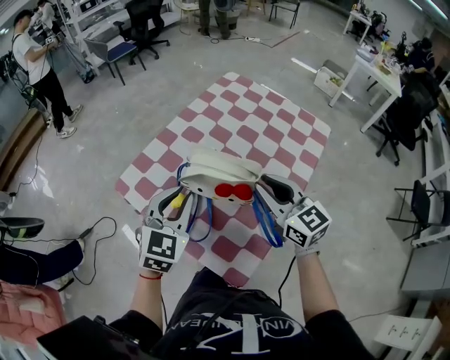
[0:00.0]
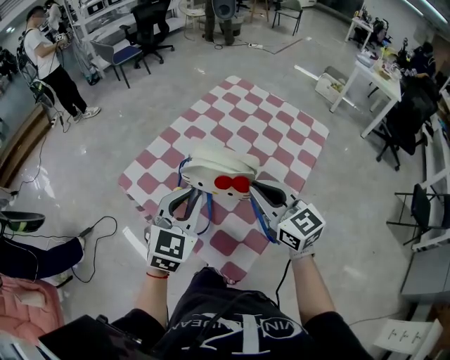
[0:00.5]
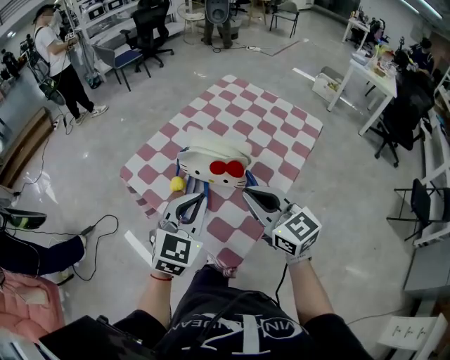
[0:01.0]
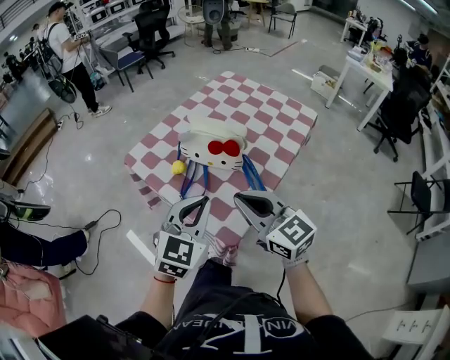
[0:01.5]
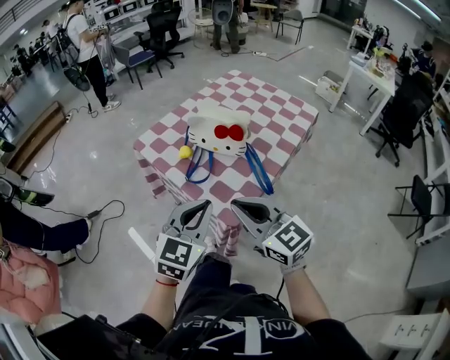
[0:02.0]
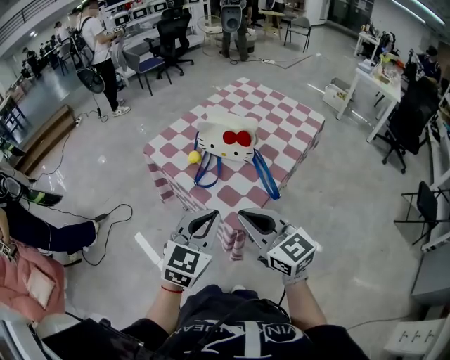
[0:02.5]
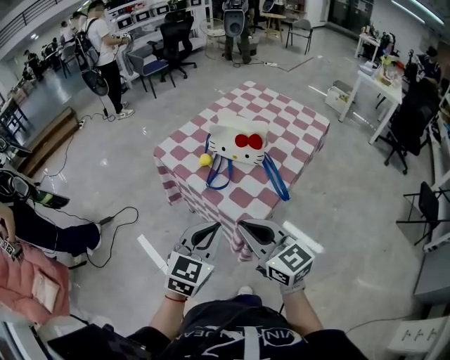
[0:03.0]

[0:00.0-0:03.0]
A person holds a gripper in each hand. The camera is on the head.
0:00.0 to 0:01.5: Both grippers move backward, some 20 cm.
0:01.5 to 0:03.0: The two grippers go about 15 cm backward and to the left.

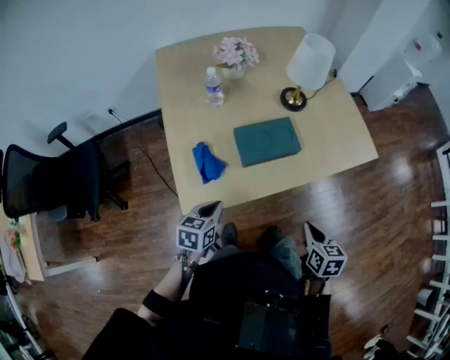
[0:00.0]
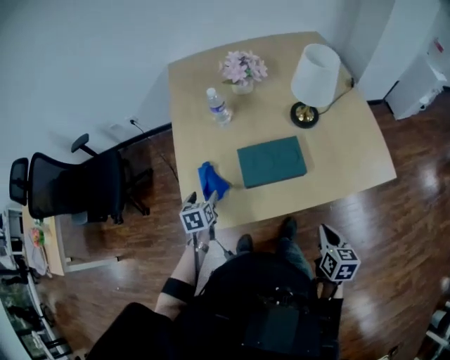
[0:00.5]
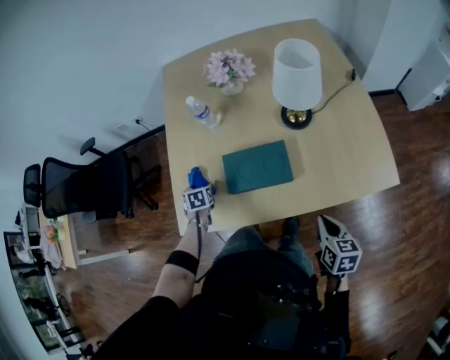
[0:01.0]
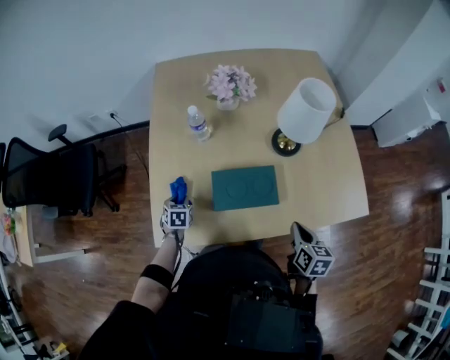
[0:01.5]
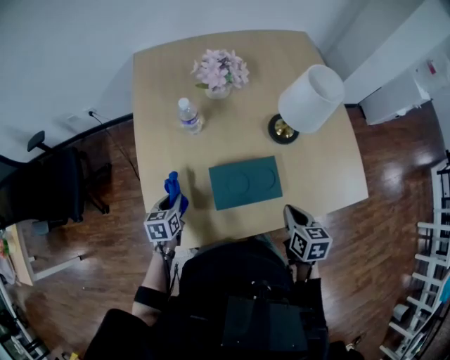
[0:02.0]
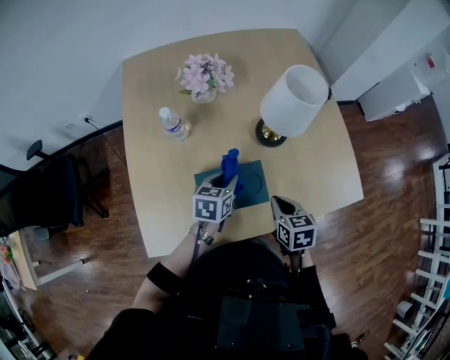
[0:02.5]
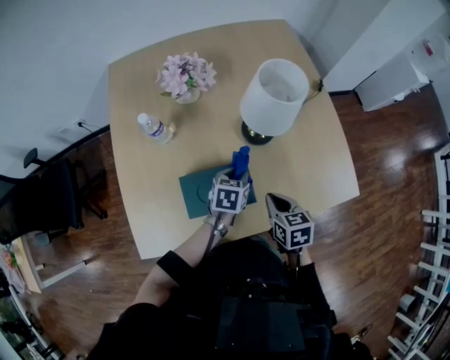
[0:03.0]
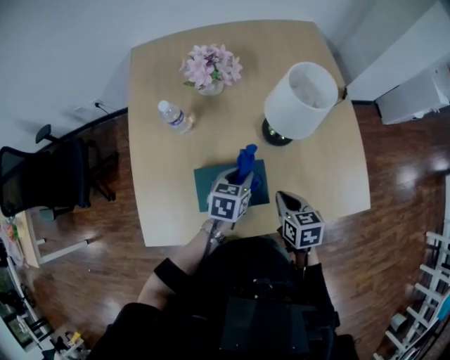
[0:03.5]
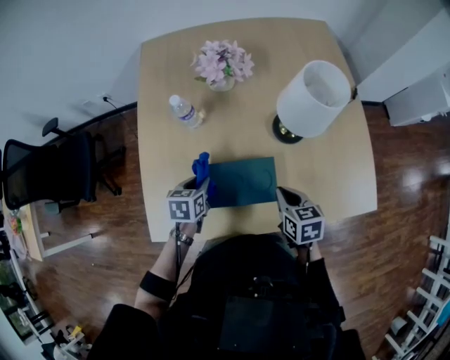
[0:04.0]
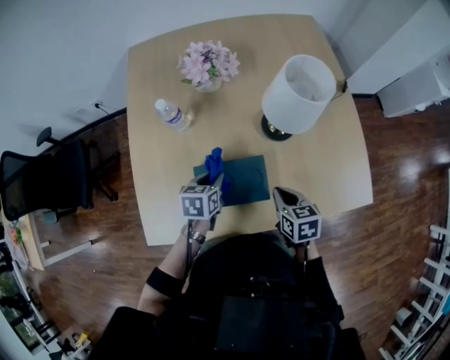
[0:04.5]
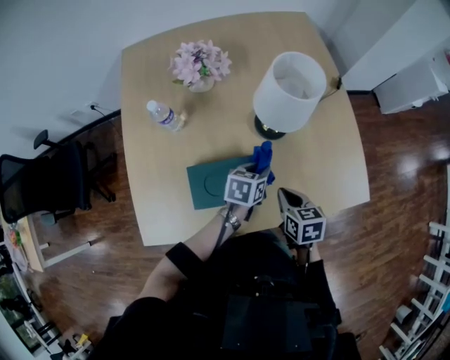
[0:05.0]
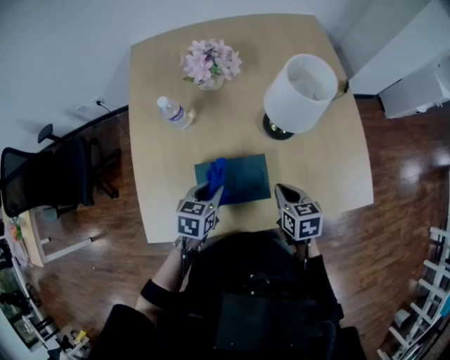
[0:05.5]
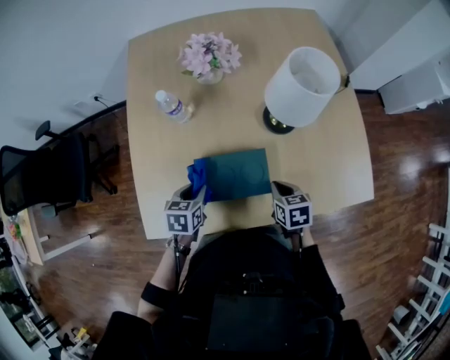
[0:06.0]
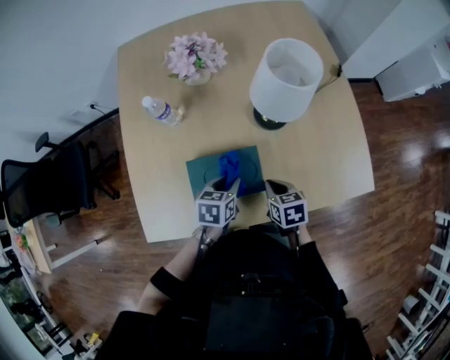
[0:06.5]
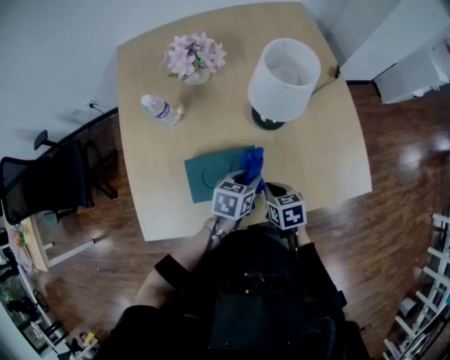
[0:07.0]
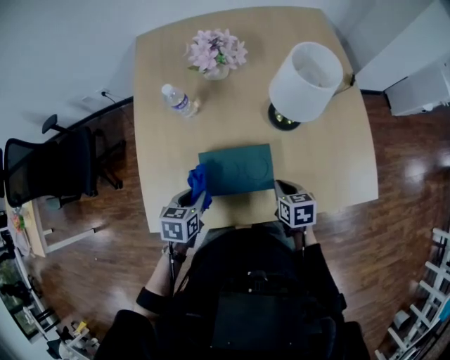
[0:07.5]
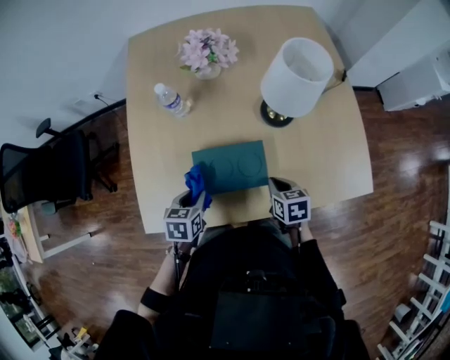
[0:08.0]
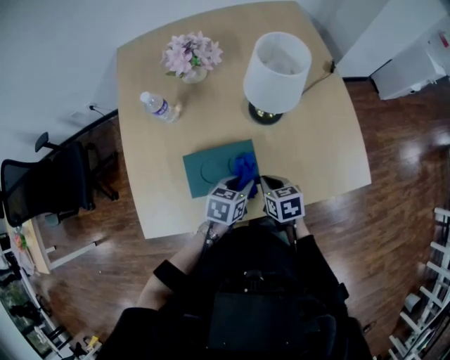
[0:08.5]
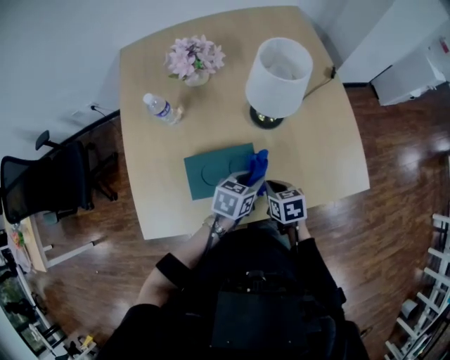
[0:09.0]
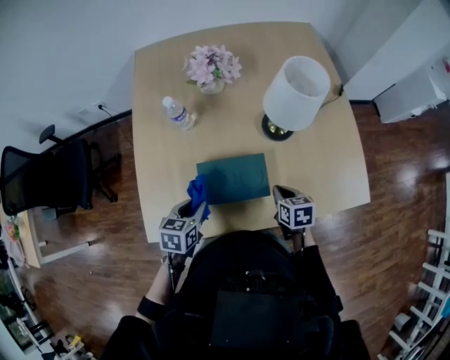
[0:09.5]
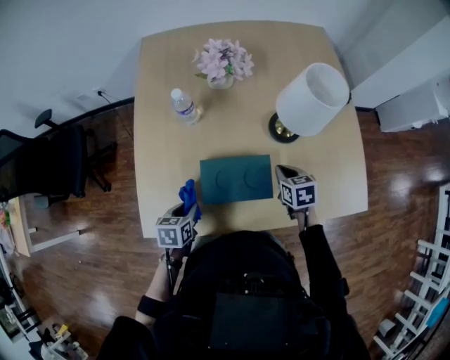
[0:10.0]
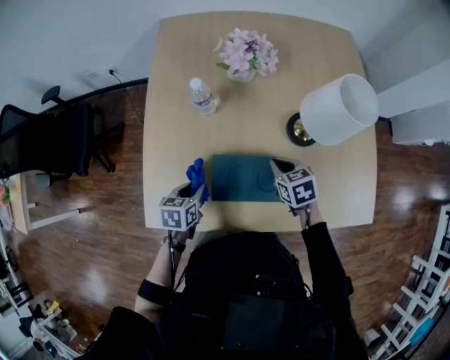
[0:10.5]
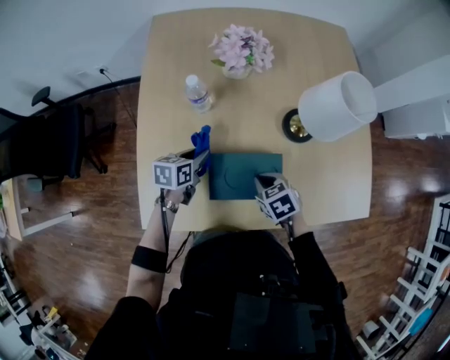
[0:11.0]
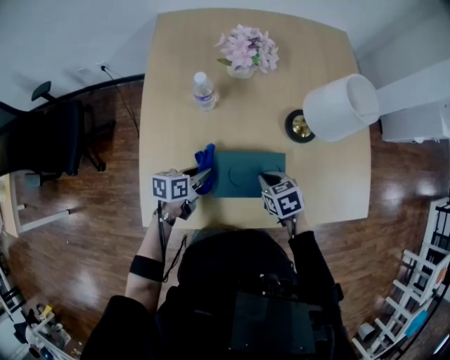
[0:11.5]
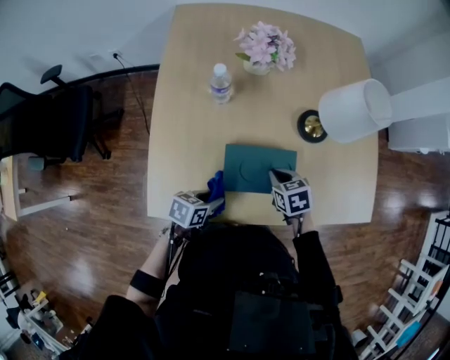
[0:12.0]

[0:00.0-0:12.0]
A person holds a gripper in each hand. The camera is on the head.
0:00.0 to 0:02.0: The right gripper shifts by some 25 cm, while the left gripper shifts by about 20 cm, turns by approximately 20 degrees, and opens, then closes once more.
0:02.0 to 0:04.0: The left gripper heads to the right, covering roughly 15 cm; the right gripper is displaced forward by about 5 cm.
0:04.0 to 0:06.0: The right gripper travels downward by roughly 5 cm; the left gripper goes to the right and returns, about 25 cm each way.
0:06.0 to 0:08.0: The left gripper goes to the right and returns, roughly 20 cm each way.
0:08.0 to 0:10.0: The right gripper goes about 10 cm forward, while the left gripper travels to the right and back again, about 25 cm each way.
0:10.0 to 0:12.0: The right gripper goes approximately 10 cm to the left; the left gripper moves about 15 cm forward and comes back, and swivels roughly 30 degrees.

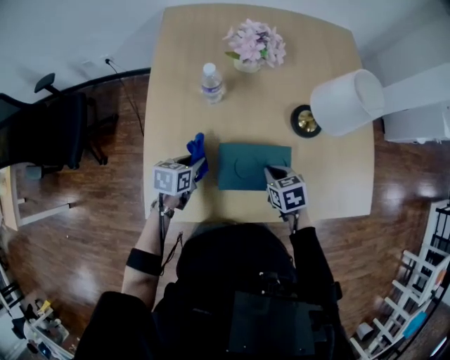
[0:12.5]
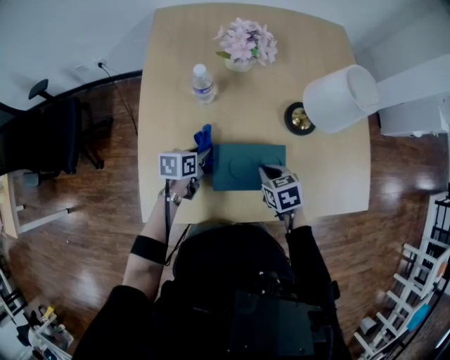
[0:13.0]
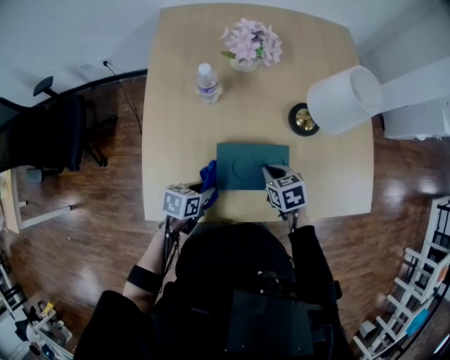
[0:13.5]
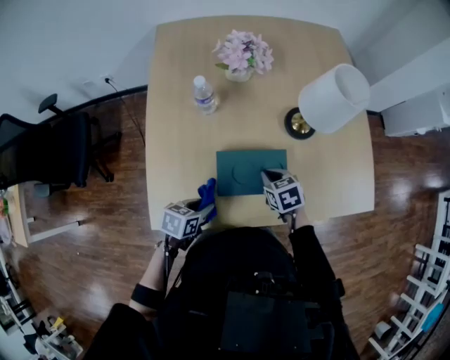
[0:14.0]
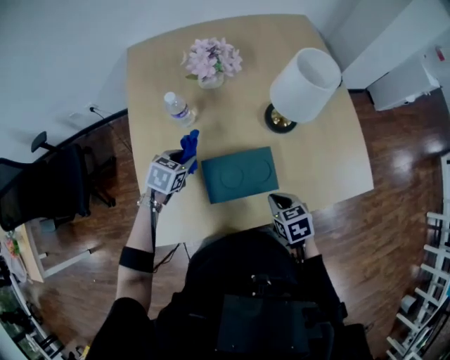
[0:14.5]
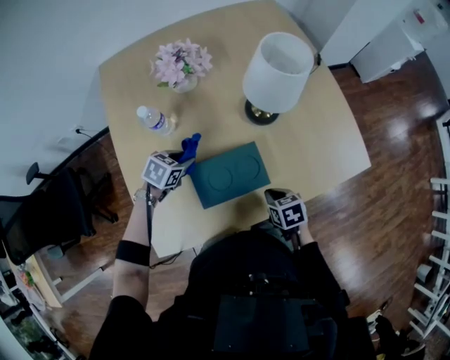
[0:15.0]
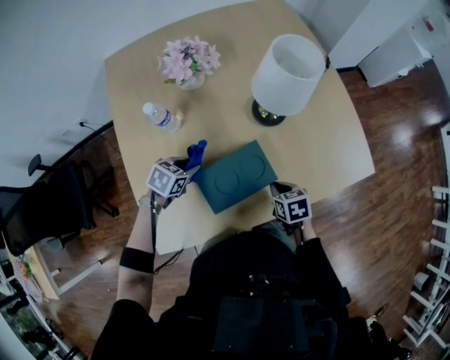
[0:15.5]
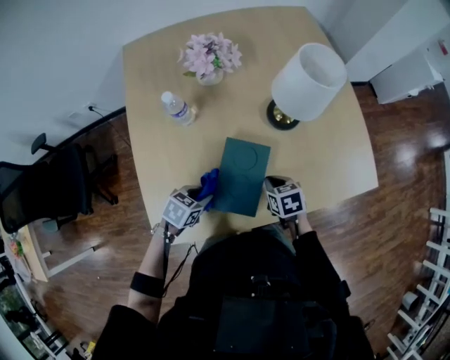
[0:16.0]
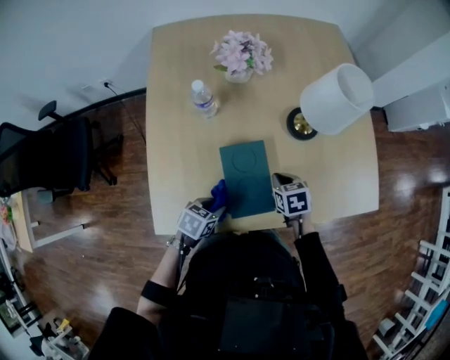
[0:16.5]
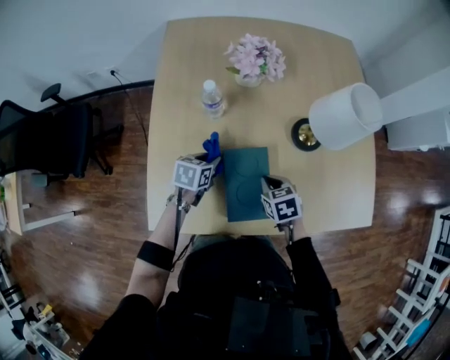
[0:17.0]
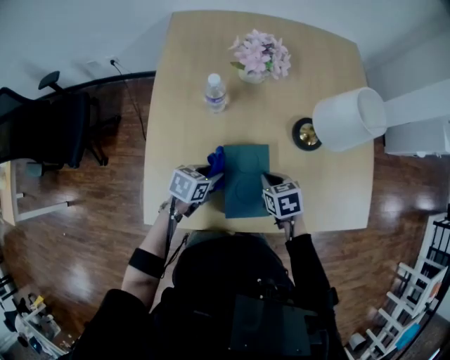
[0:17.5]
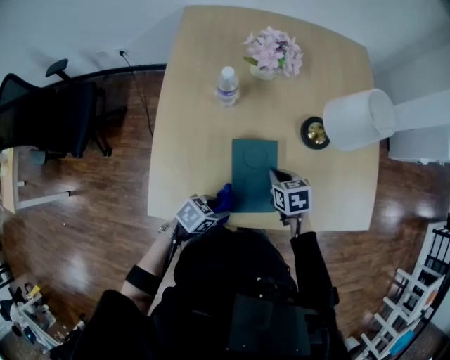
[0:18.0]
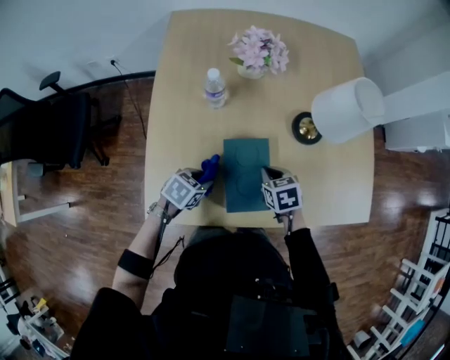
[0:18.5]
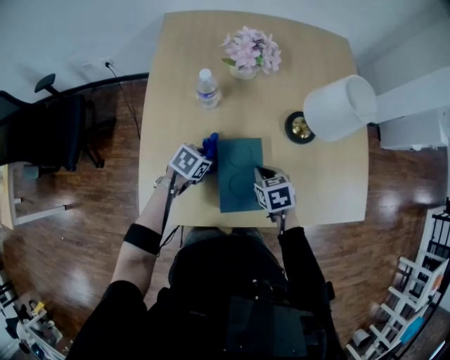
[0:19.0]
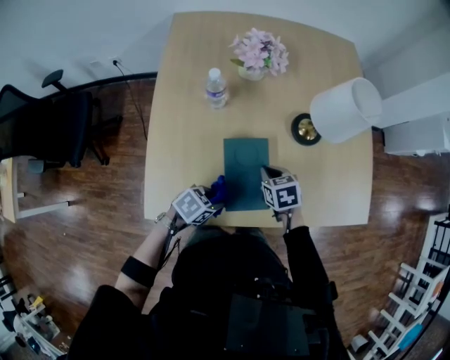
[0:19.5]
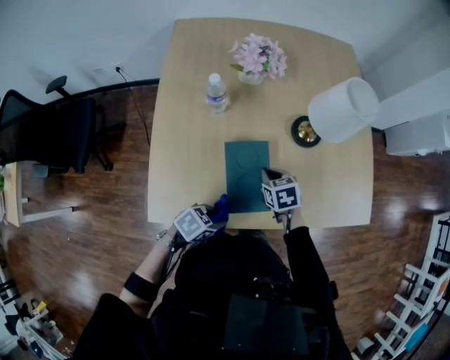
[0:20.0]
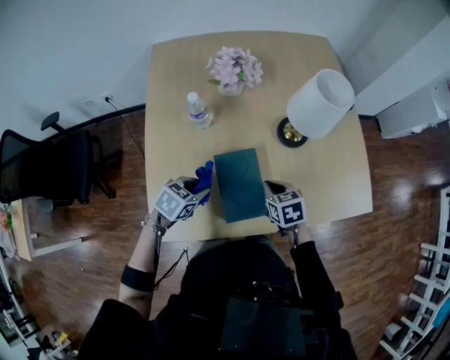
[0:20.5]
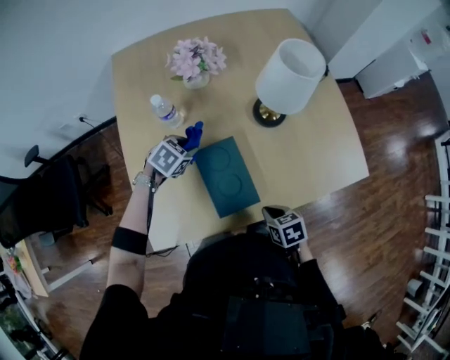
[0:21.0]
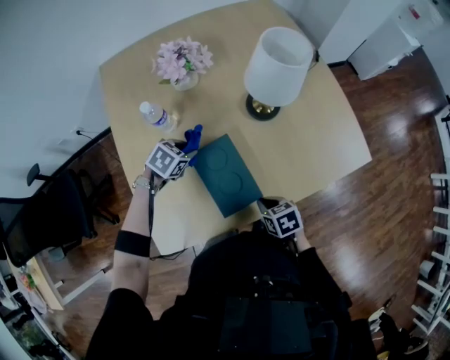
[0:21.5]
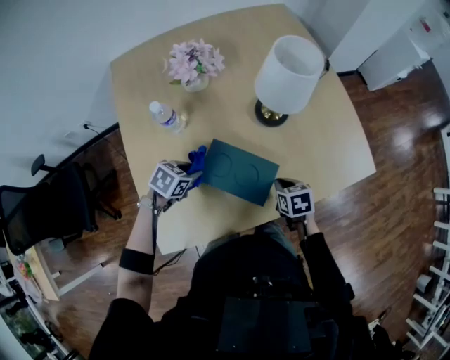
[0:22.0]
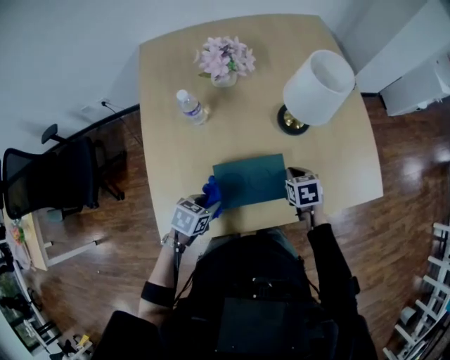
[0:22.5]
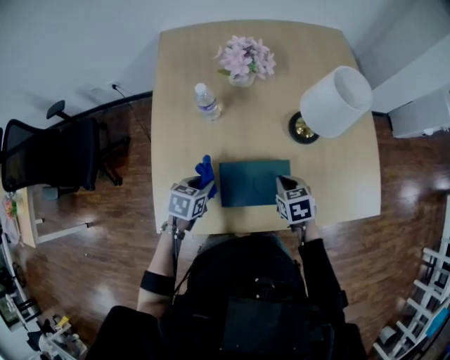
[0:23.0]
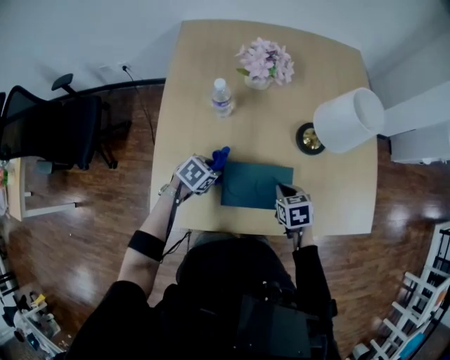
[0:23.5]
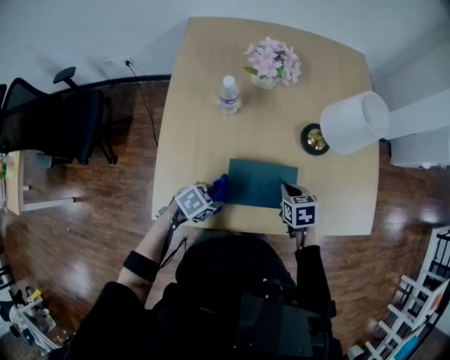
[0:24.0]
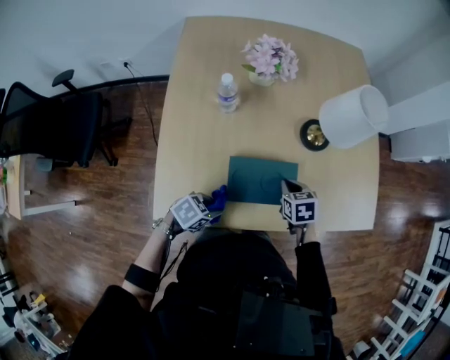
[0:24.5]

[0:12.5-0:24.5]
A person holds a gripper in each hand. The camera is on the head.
0:12.5 to 0:14.5: The left gripper goes forward and backward, approximately 20 cm each way, reversing 2 times, and turns by roughly 30 degrees; the right gripper shifts roughly 10 cm backward and to the right.
0:14.5 to 0:16.5: The left gripper is displaced backward and to the right by roughly 20 cm, while the right gripper goes about 5 cm forward.
0:16.5 to 0:18.5: The right gripper moves to the left, approximately 5 cm, while the left gripper moves forward and backward over about 20 cm, changing direction 2 times.
0:18.5 to 0:20.5: The right gripper shifts by approximately 5 cm. Meanwhile the left gripper goes forward and backward, some 20 cm each way, reversing 2 times.
0:20.5 to 0:22.5: The left gripper travels forward and back again, approximately 15 cm each way, while the right gripper moves to the right, approximately 5 cm, and reaches about 10 cm backward, then returns.
0:22.5 to 0:24.5: The left gripper shifts some 5 cm backward. Meanwhile the right gripper travels to the left by about 5 cm.
